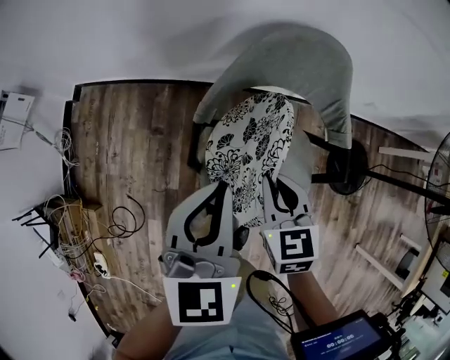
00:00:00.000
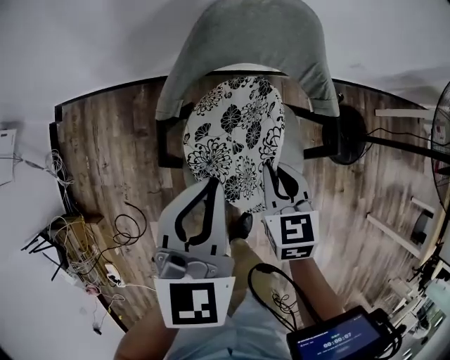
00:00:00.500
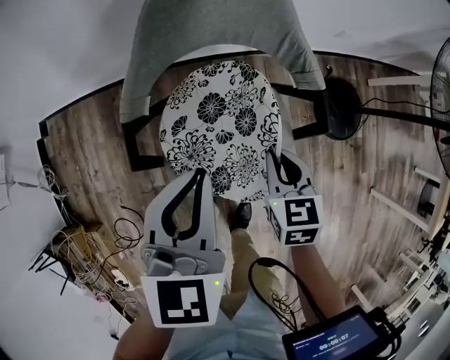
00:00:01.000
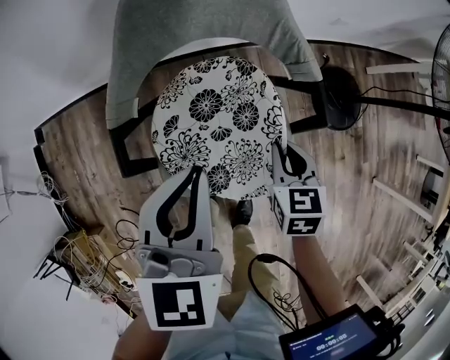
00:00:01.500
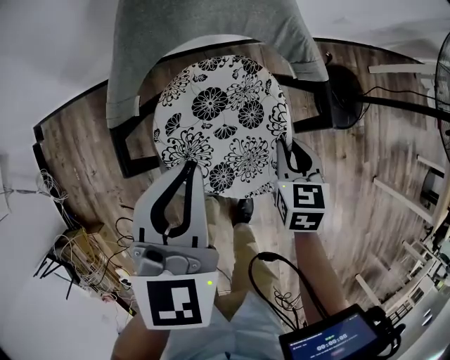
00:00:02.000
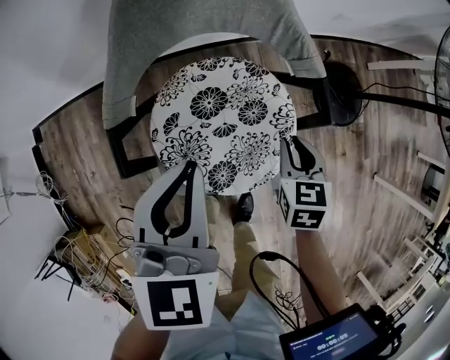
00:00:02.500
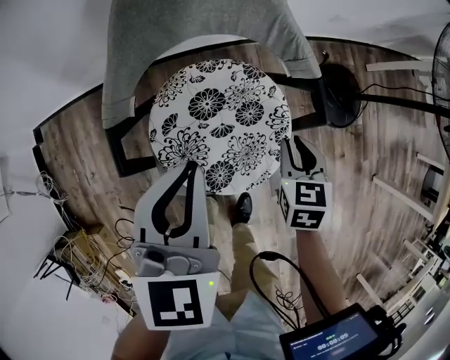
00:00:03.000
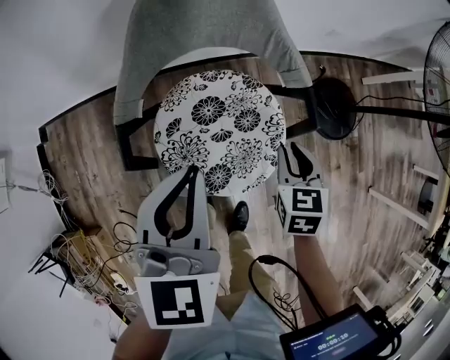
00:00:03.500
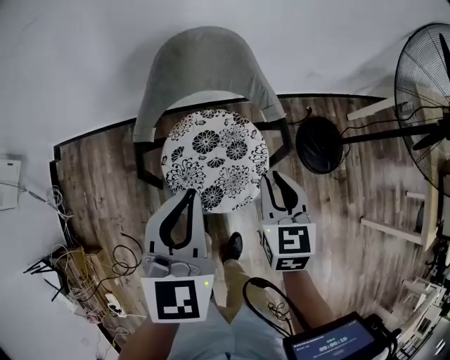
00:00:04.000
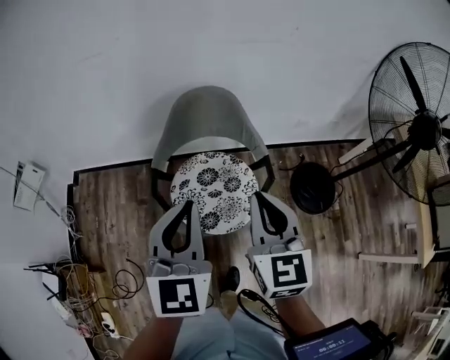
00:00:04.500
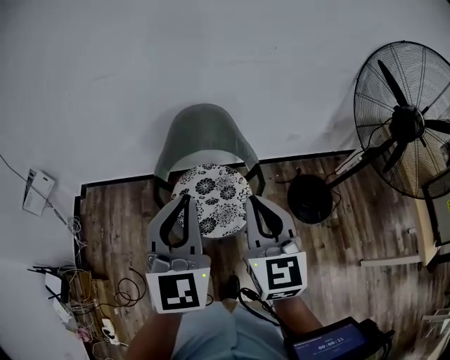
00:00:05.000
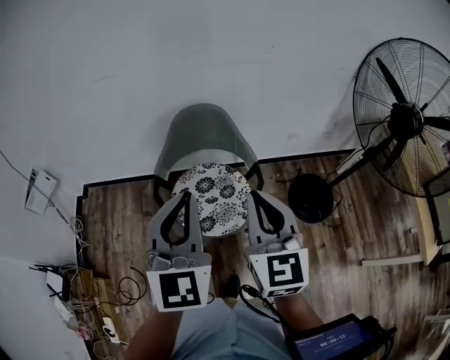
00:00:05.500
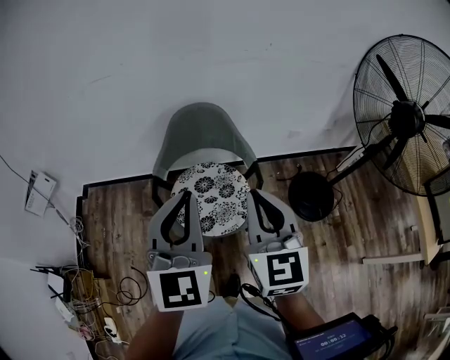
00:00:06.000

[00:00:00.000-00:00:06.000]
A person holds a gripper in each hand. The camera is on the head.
00:00:00.000 to 00:00:02.000: The right gripper goes approximately 25 cm to the right and downward, and changes its angle by approximately 30 degrees, while the left gripper shifts roughly 15 cm to the right and downward.
00:00:02.000 to 00:00:04.000: The left gripper travels upward and backward by roughly 15 cm, while the right gripper shifts approximately 20 cm upward.
00:00:04.000 to 00:00:06.000: Both grippers move upward and backward, roughly 25 cm. The left gripper changes its angle by approximately 30 degrees. The right gripper swivels some 30 degrees.

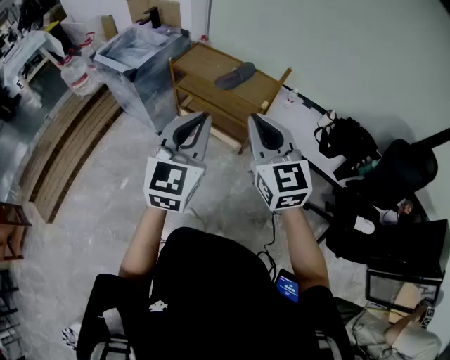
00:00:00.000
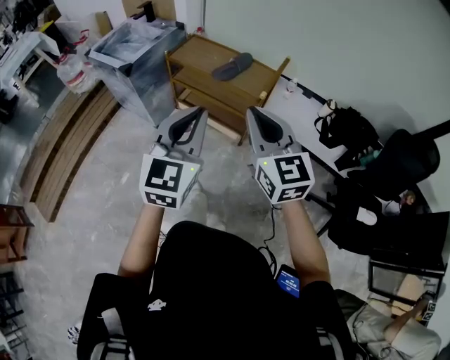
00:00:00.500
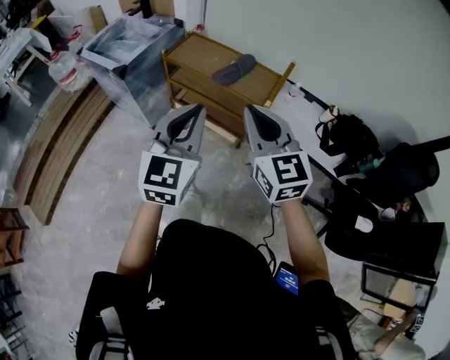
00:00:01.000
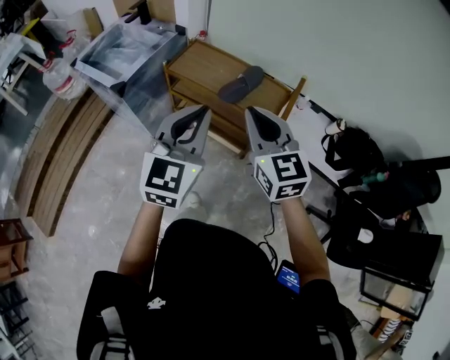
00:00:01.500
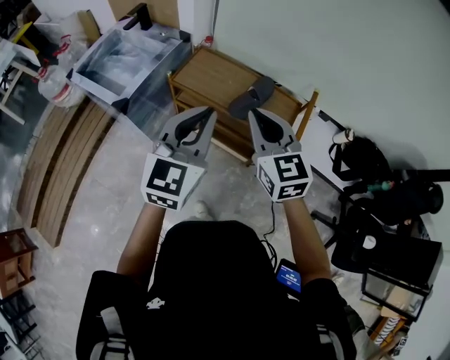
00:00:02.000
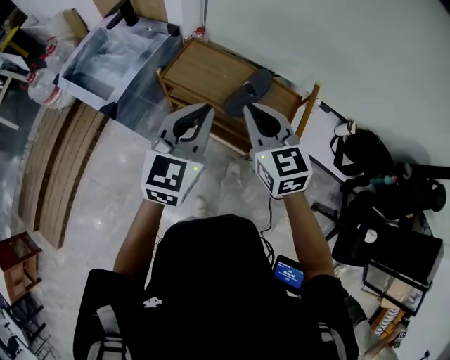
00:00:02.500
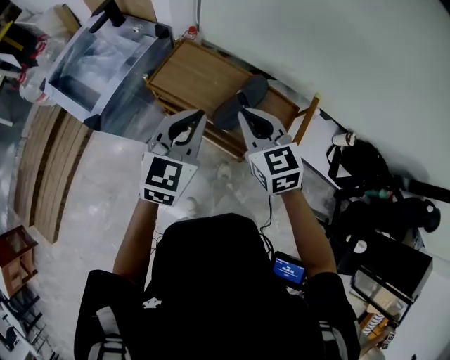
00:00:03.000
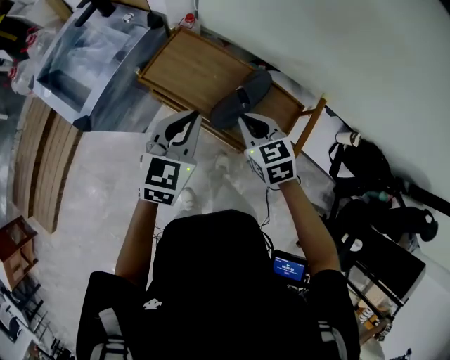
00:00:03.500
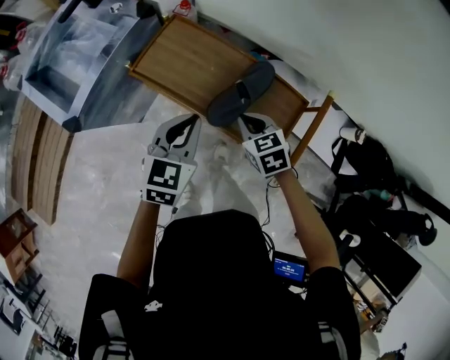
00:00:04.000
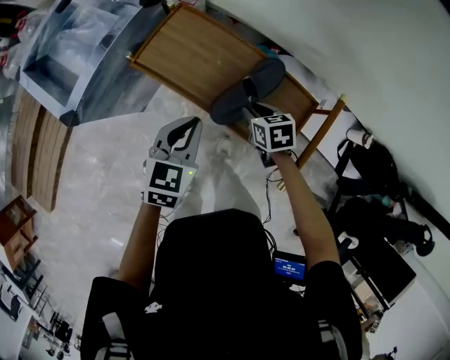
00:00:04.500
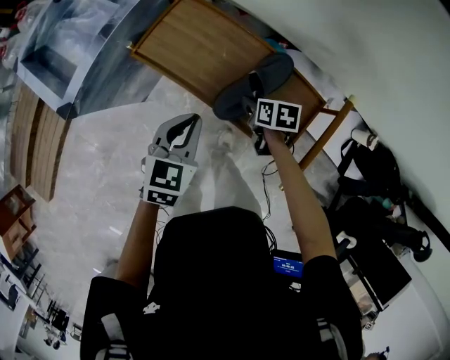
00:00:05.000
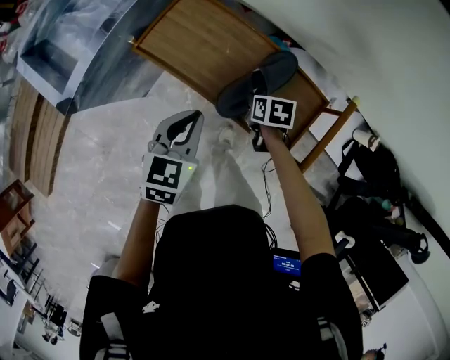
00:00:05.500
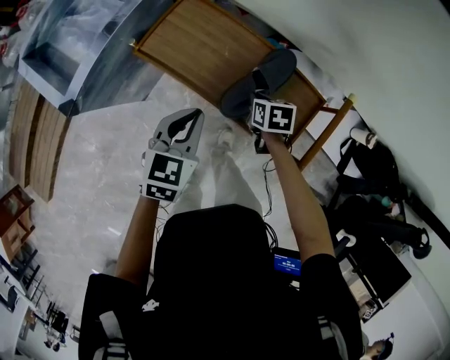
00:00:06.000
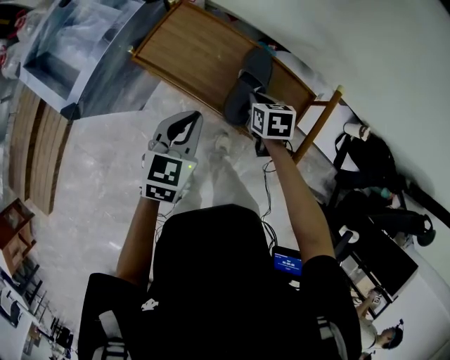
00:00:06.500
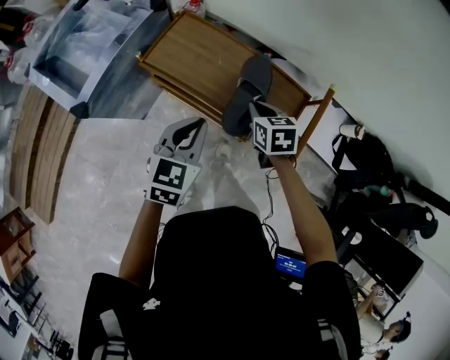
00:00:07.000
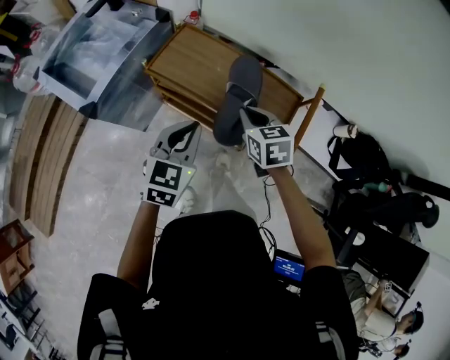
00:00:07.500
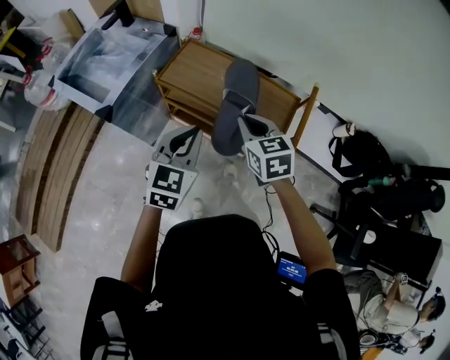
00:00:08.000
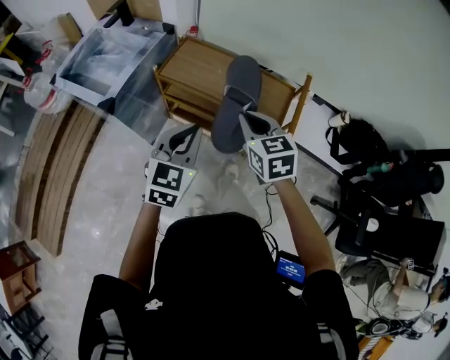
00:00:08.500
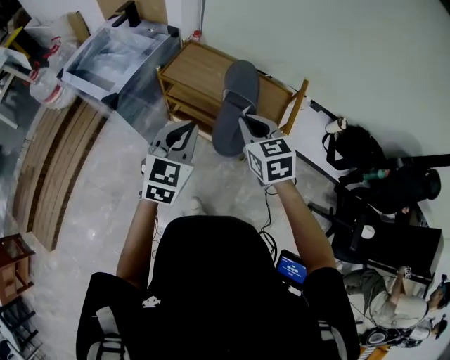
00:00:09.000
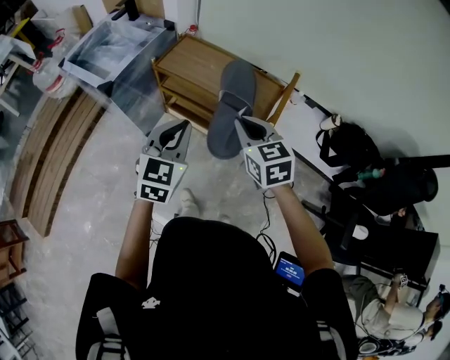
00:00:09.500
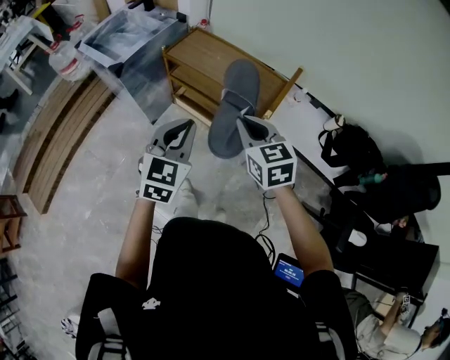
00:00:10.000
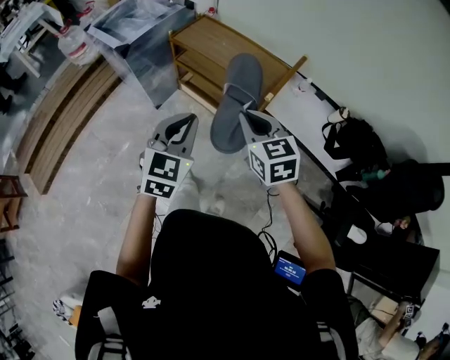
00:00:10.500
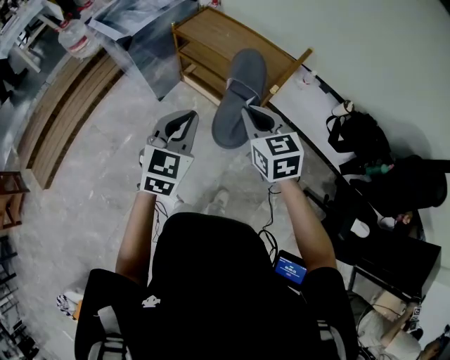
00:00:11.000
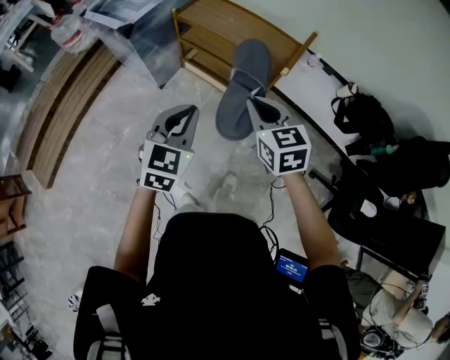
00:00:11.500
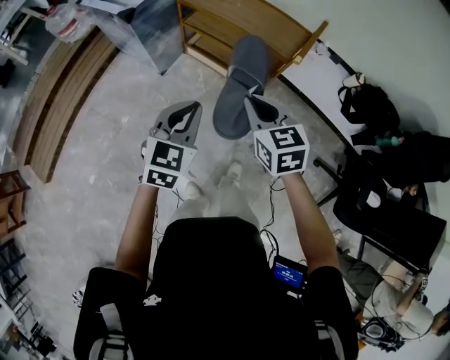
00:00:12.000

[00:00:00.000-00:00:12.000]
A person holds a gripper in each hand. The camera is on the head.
00:00:00.000 to 00:00:02.000: Both grippers move forward, some 35 cm.
00:00:02.000 to 00:00:04.000: The two grippers go roughly 35 cm downward and forward. The right gripper angles its fingers downward, by some 40 degrees. Meanwhile the left gripper turns by about 30 degrees.
00:00:04.000 to 00:00:06.000: The right gripper shifts approximately 10 cm downward, rotates about 30 degrees, and opens and closes again. The left gripper heads downward, covering about 5 cm.
00:00:06.000 to 00:00:08.000: The right gripper goes roughly 35 cm upward and backward, and rotates some 30 degrees; the left gripper goes approximately 20 cm backward and upward.
00:00:08.000 to 00:00:10.000: The two grippers go some 20 cm backward.
00:00:10.000 to 00:00:12.000: The two grippers go about 15 cm backward, to the left and downward.

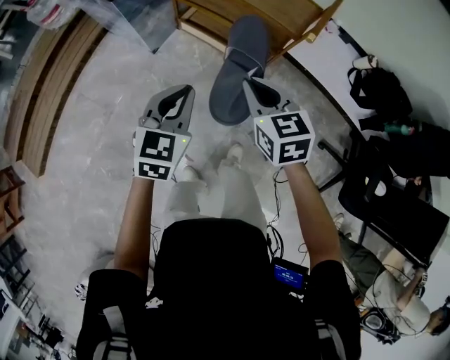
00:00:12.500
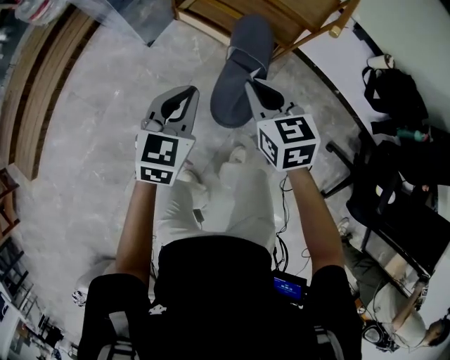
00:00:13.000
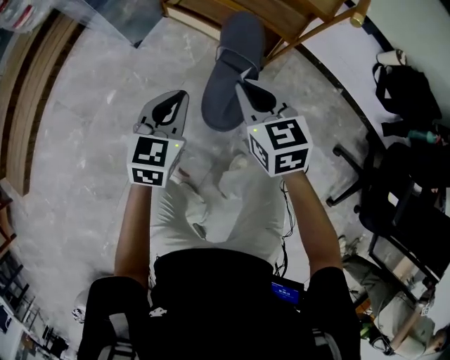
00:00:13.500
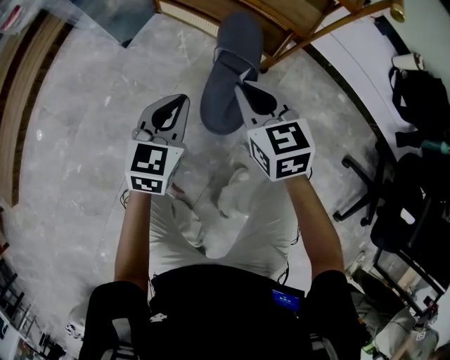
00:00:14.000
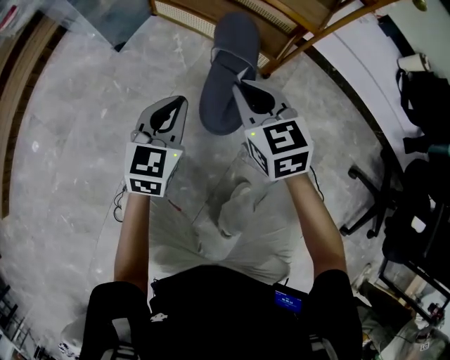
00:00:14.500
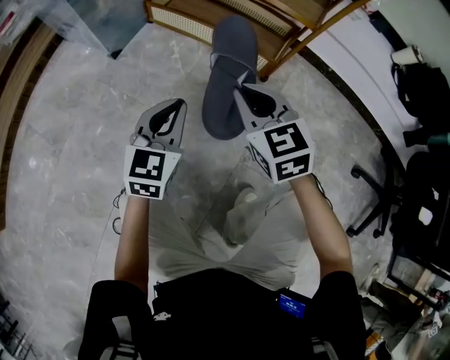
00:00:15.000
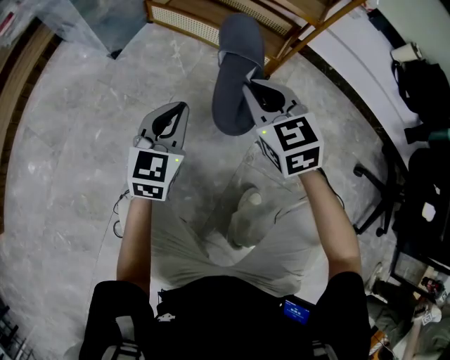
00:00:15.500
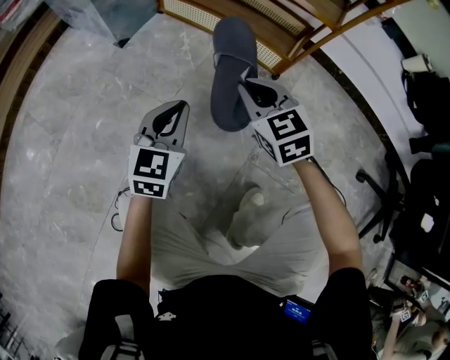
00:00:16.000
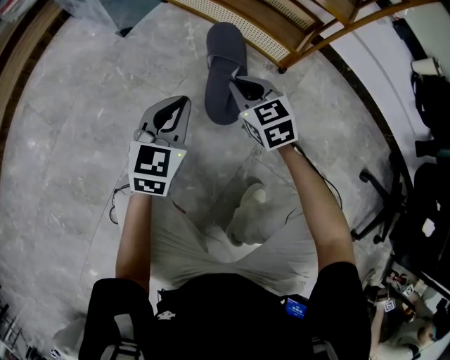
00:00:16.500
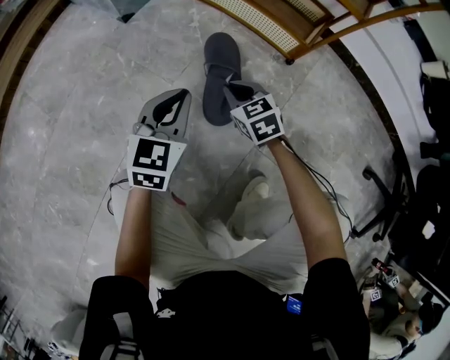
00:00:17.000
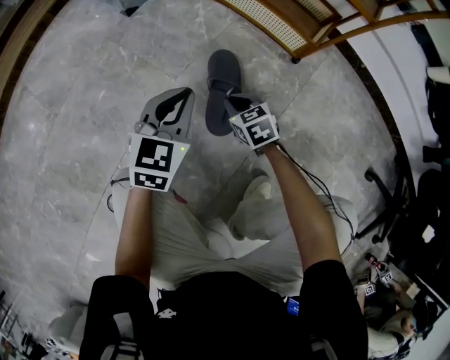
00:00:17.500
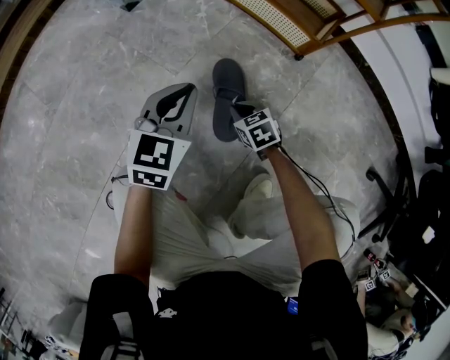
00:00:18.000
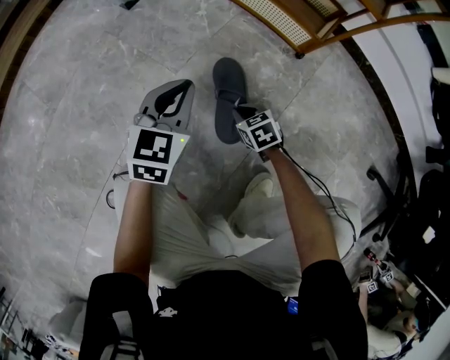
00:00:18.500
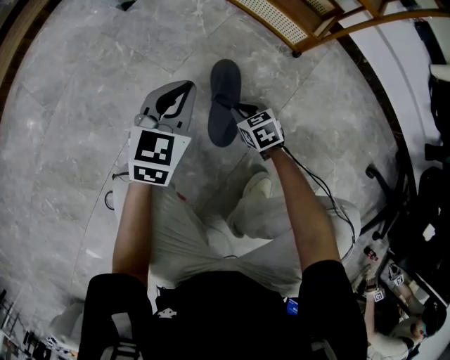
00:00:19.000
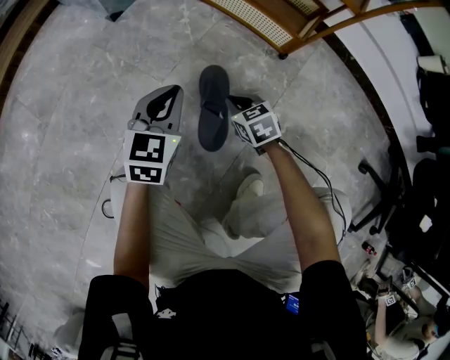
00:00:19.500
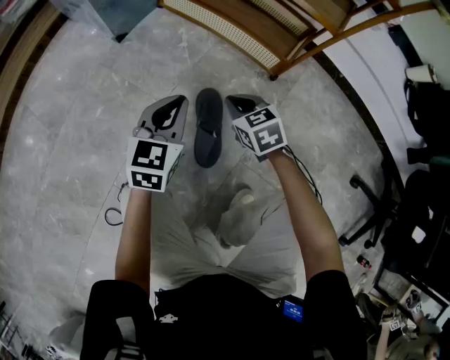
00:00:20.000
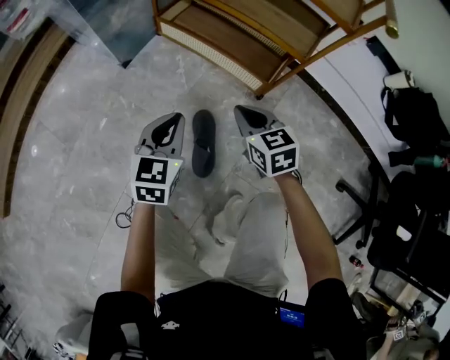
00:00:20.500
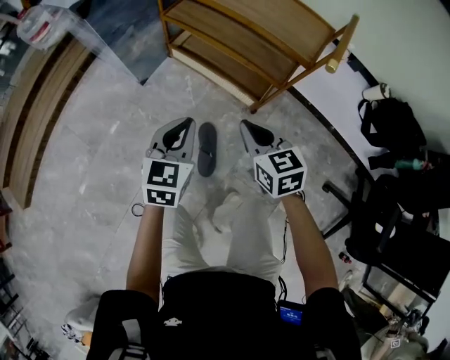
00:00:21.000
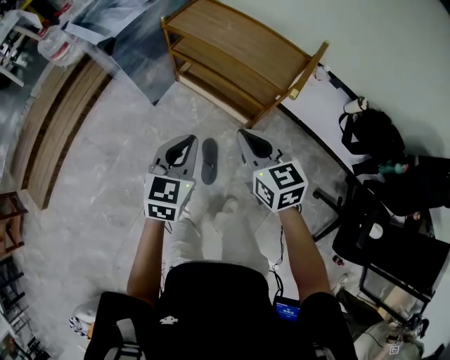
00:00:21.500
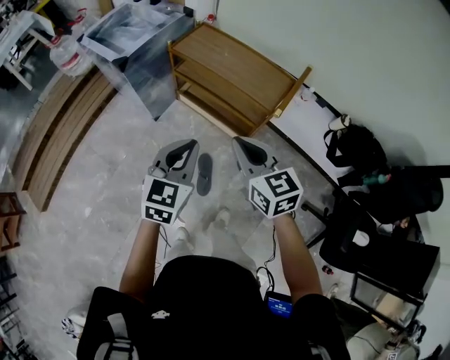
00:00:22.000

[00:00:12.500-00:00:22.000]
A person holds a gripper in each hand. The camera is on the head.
00:00:12.500 to 00:00:14.500: Both grippers travel together downward, about 50 cm.
00:00:14.500 to 00:00:16.500: The left gripper shifts about 10 cm downward, while the right gripper travels downward by some 15 cm.
00:00:16.500 to 00:00:18.000: The right gripper heads downward and backward, covering roughly 20 cm, and changes its angle by approximately 20 degrees.
00:00:18.000 to 00:00:20.000: The right gripper heads upward and forward, covering roughly 20 cm. The left gripper is displaced upward by about 5 cm.
00:00:20.000 to 00:00:22.000: Both grippers travel together upward, about 70 cm. The right gripper swivels roughly 30 degrees.
